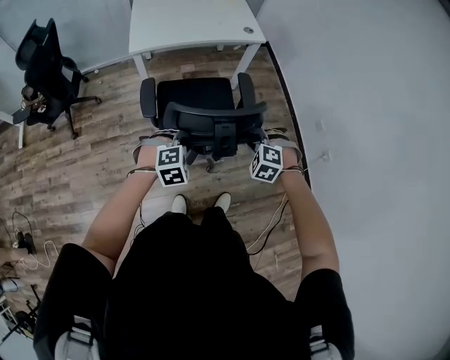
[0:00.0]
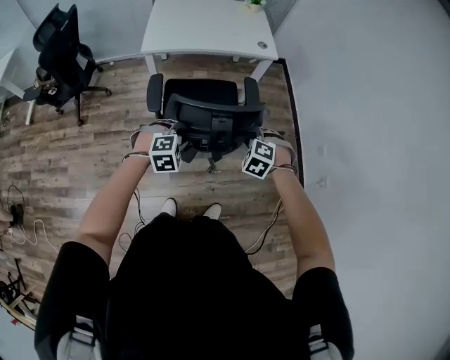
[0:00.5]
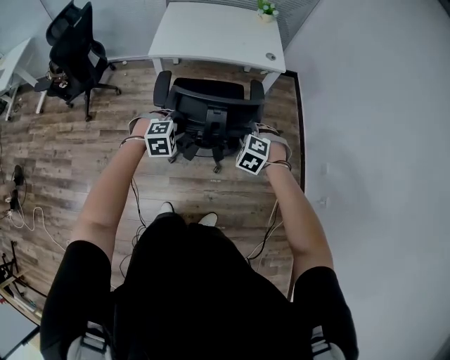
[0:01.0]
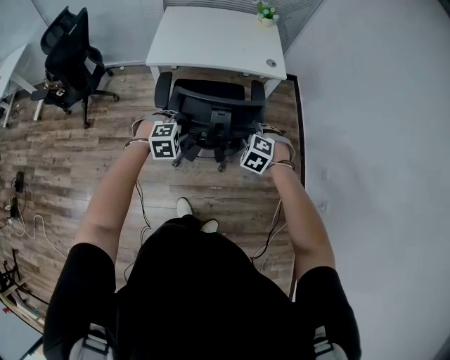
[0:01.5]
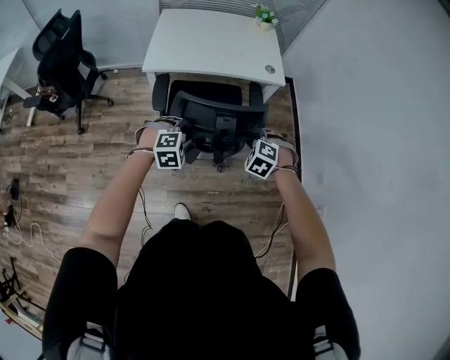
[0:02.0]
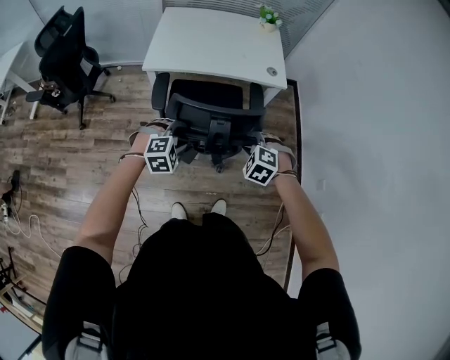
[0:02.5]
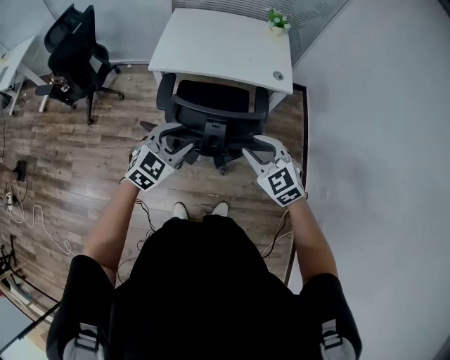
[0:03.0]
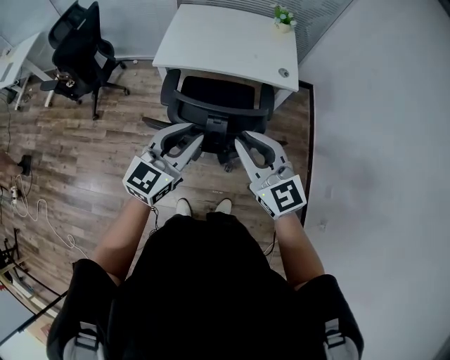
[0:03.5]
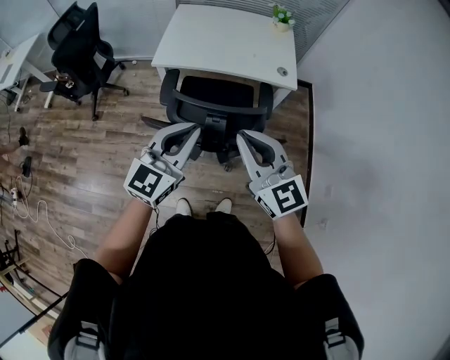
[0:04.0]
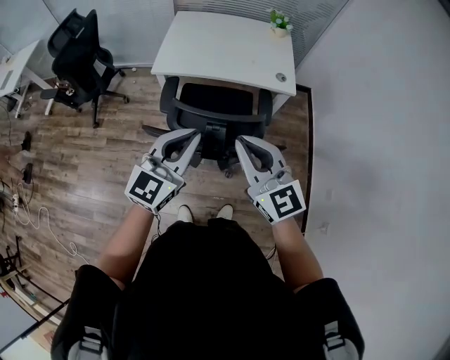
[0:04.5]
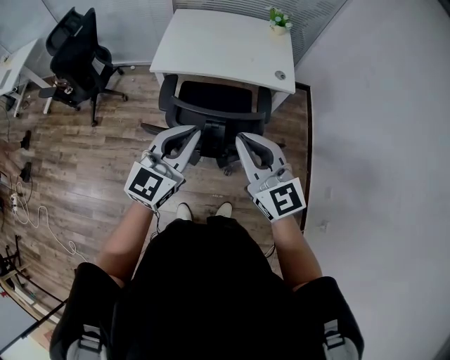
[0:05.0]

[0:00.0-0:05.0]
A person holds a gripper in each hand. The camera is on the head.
0:00.0 to 0:02.5: Both grippers travel together forward, roughly 25 cm. The left gripper opens.
0:02.5 to 0:05.0: The grippers both shift upward by some 25 cm. The right gripper tilts its fingers some 60 degrees upward, and closes, while the left gripper angles its fingers upward, by some 50 degrees, and closes.

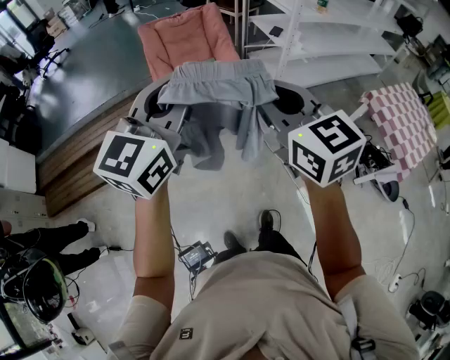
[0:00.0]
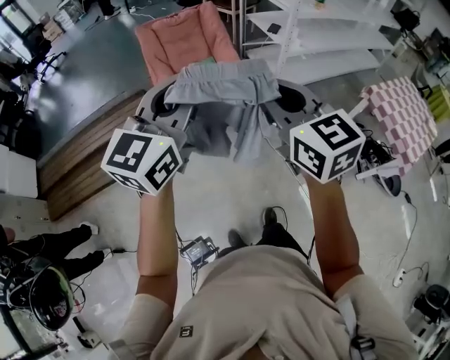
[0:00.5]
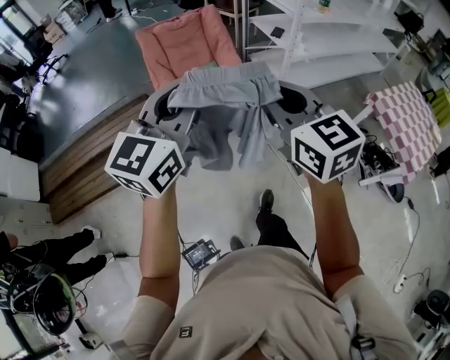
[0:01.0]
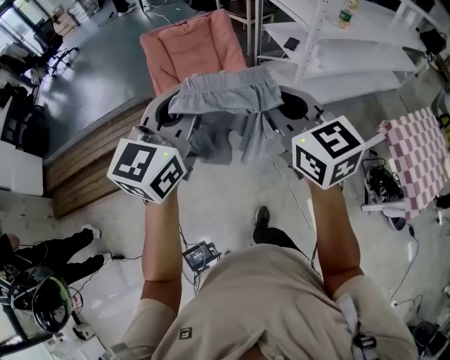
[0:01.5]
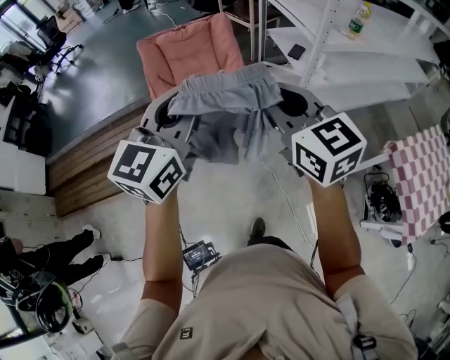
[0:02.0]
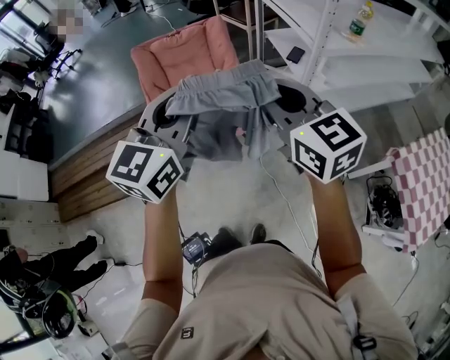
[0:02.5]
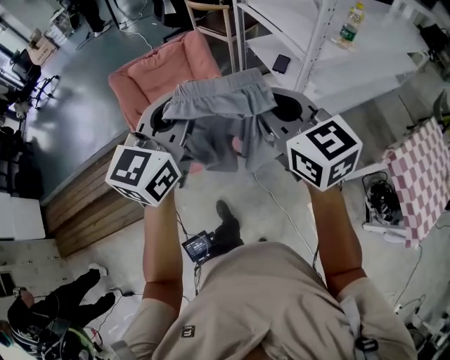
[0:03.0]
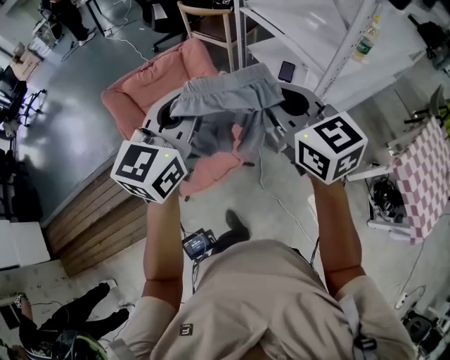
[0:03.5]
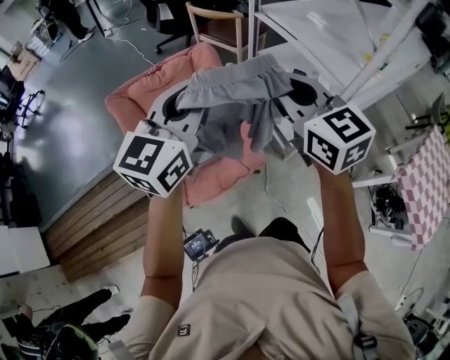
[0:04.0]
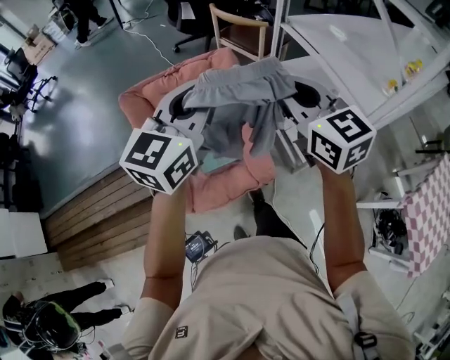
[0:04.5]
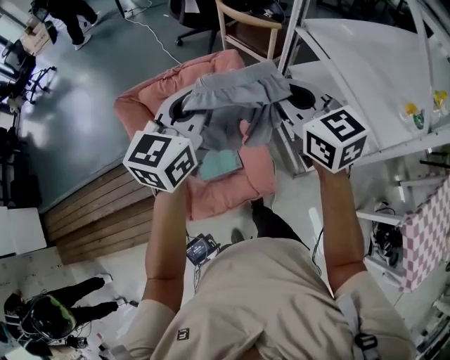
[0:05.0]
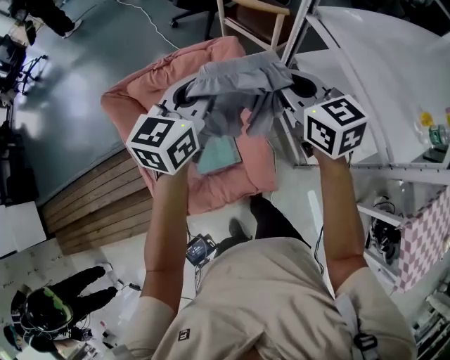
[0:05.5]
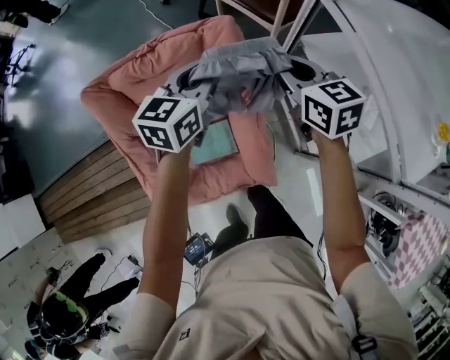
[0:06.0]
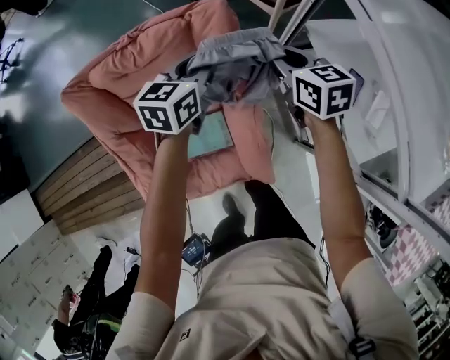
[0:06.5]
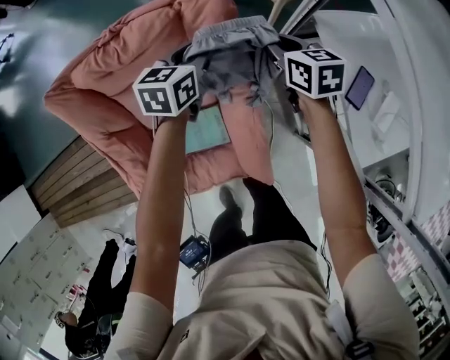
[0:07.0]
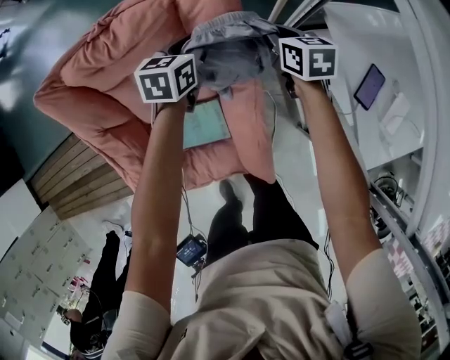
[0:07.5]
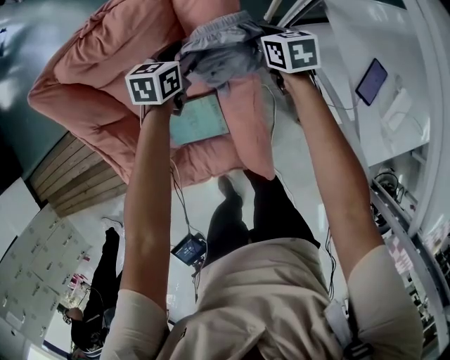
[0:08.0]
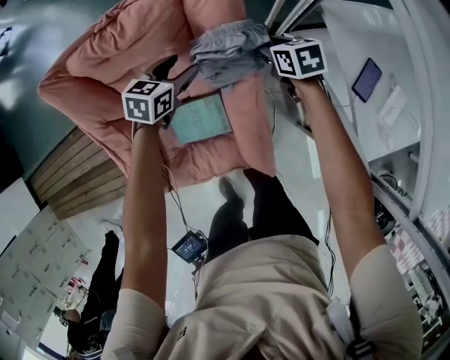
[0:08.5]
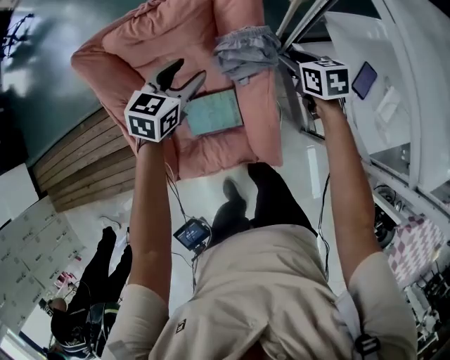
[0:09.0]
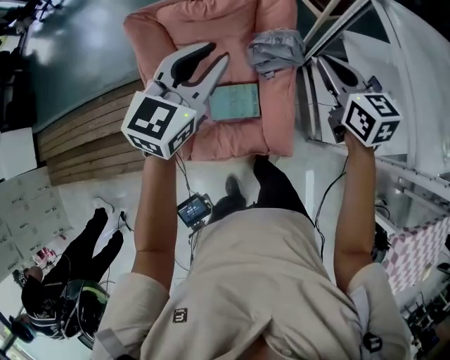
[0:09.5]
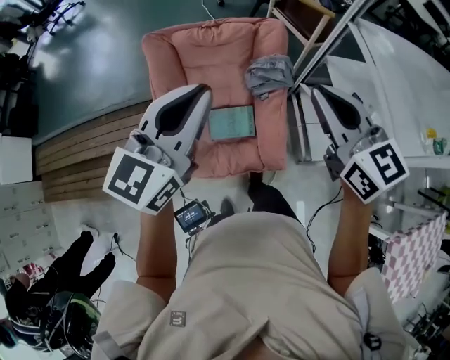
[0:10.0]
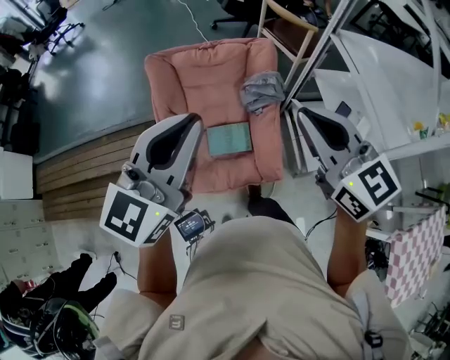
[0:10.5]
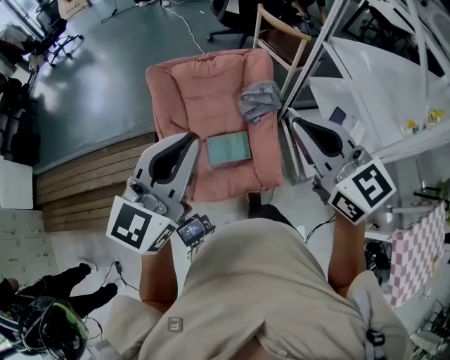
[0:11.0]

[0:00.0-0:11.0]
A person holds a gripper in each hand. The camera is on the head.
0:00.0 to 0:02.0: Both grippers move forward, about 30 cm.
0:02.0 to 0:03.5: The two grippers go roughly 30 cm forward.
0:03.5 to 0:05.5: The left gripper goes about 35 cm forward and downward. The right gripper goes some 35 cm forward.
0:05.5 to 0:07.5: The two grippers go roughly 40 cm downward and forward. The left gripper turns by approximately 30 degrees, while the right gripper turns by roughly 30 degrees.
0:07.5 to 0:09.0: The right gripper goes about 15 cm backward and upward, and opens; the left gripper is displaced backward, upward and to the left by roughly 20 cm, and opens.
0:09.0 to 0:11.0: The two grippers go approximately 50 cm upward and backward. The right gripper points its fingers about 40 degrees further upward, and closes. Meanwhile the left gripper tilts its fingers about 40 degrees upward, and closes up.

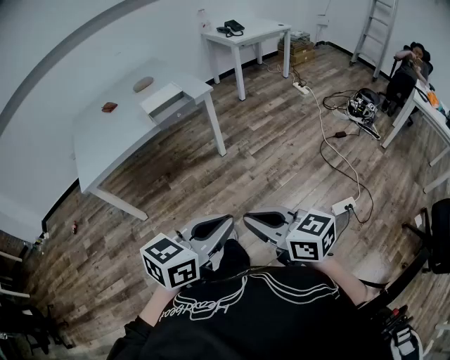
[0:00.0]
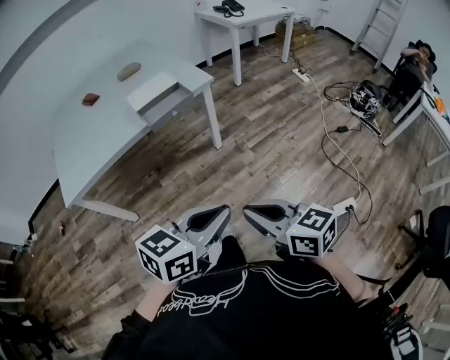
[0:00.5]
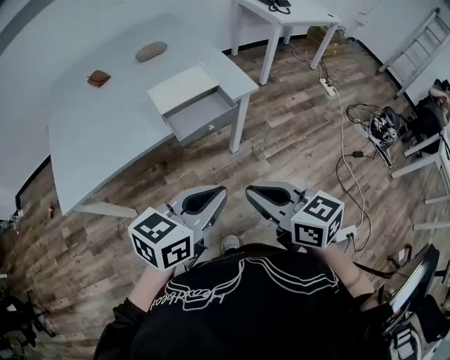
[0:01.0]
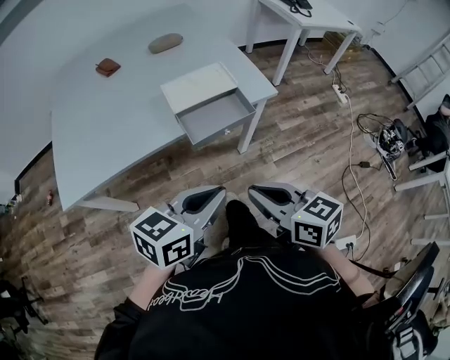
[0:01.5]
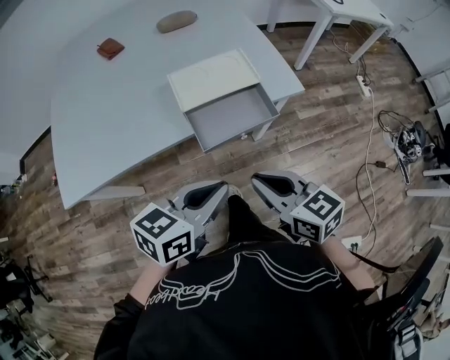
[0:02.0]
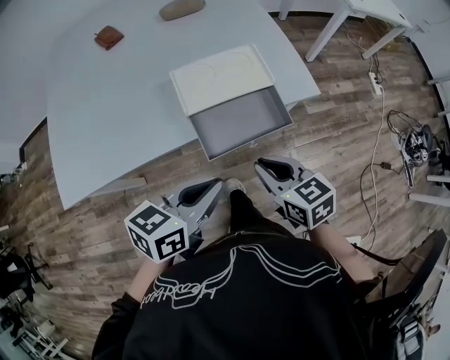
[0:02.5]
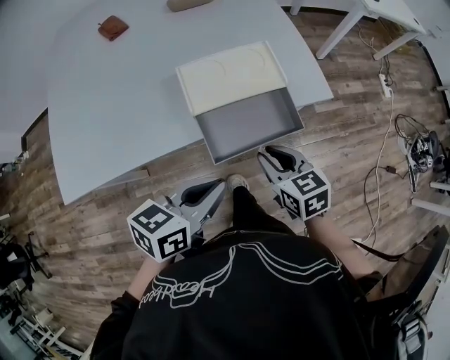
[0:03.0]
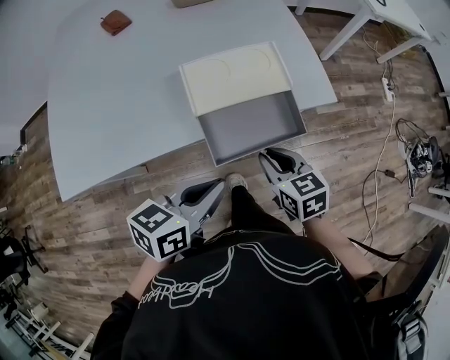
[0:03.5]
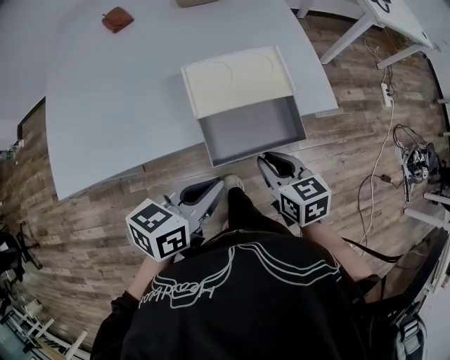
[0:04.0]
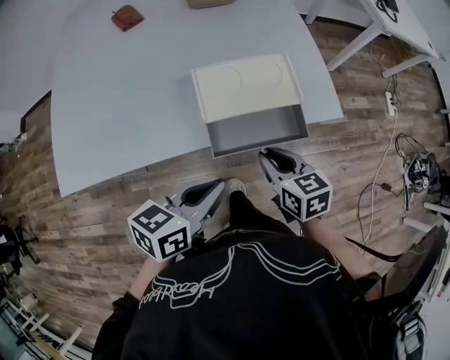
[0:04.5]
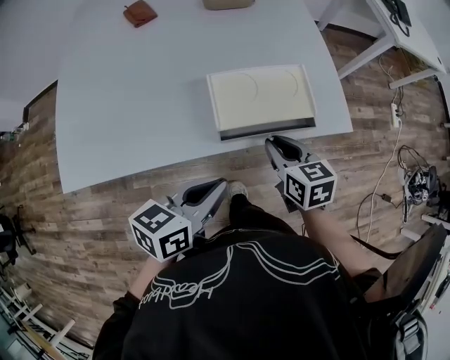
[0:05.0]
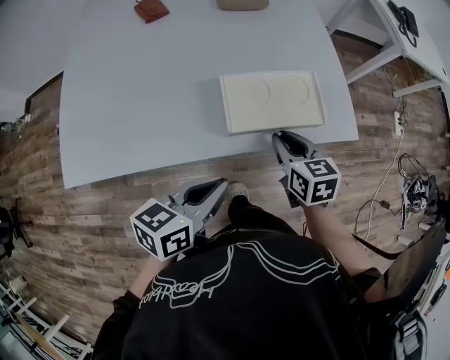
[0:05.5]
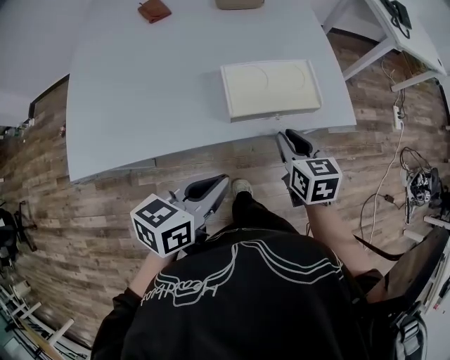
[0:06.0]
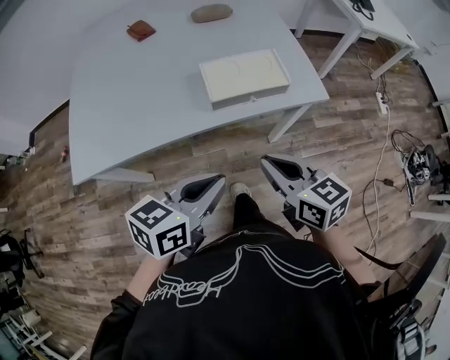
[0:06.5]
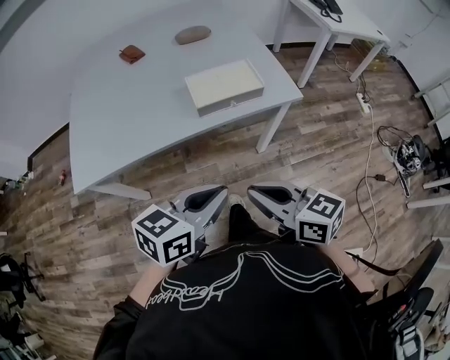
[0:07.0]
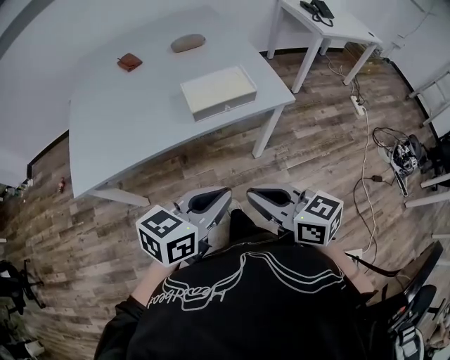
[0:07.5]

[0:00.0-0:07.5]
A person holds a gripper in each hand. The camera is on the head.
0:00.0 to 0:02.0: The two grippers travel together, forward, roughly 50 cm.
0:02.0 to 0:04.0: The right gripper travels forward and downward by some 15 cm. Meanwhile the left gripper heads forward and downward, covering about 10 cm.
0:04.0 to 0:05.5: The right gripper shifts approximately 10 cm forward. Meanwhile the left gripper goes roughly 5 cm to the left.
0:05.5 to 0:07.5: The right gripper is displaced backward and upward by roughly 35 cm, and rotates roughly 30 degrees, while the left gripper goes some 20 cm backward, upward and to the right, and swivels approximately 20 degrees.

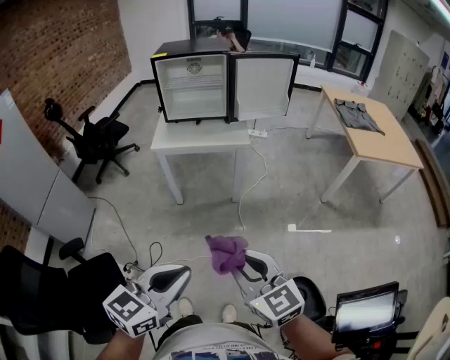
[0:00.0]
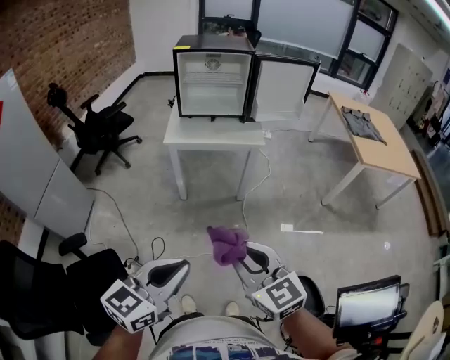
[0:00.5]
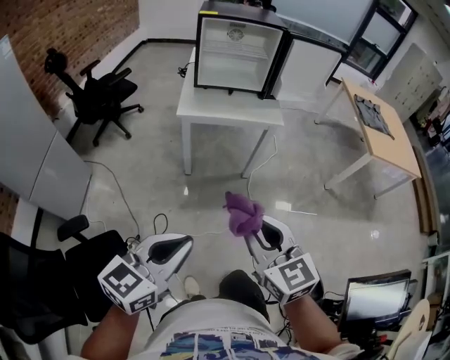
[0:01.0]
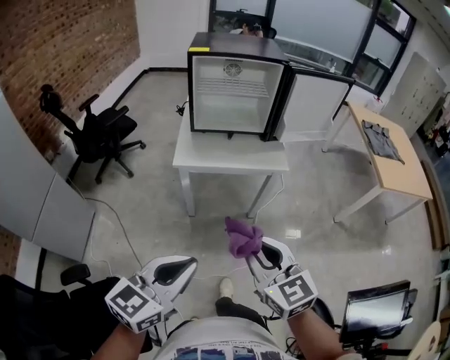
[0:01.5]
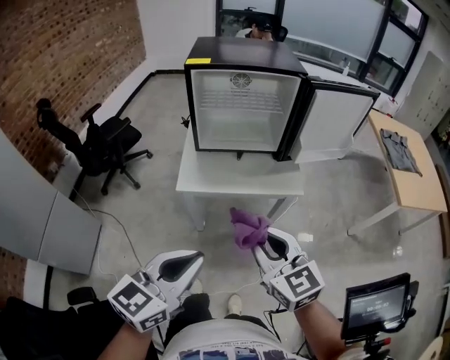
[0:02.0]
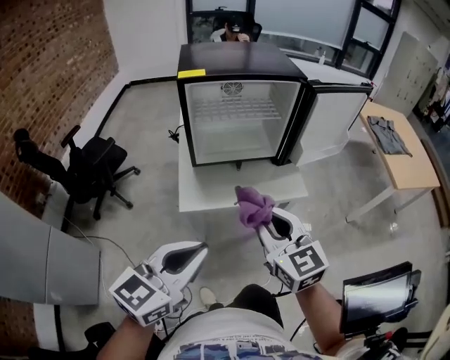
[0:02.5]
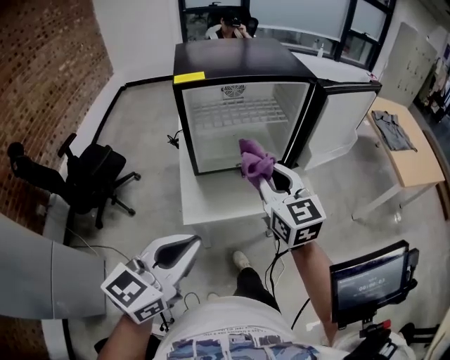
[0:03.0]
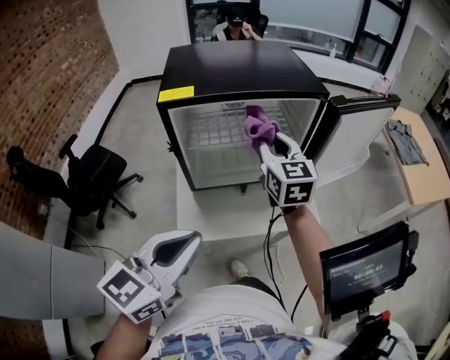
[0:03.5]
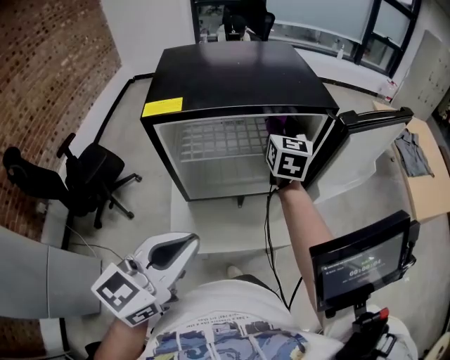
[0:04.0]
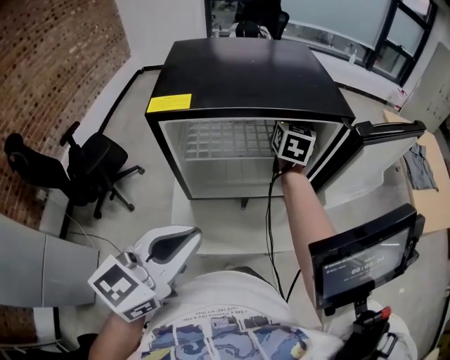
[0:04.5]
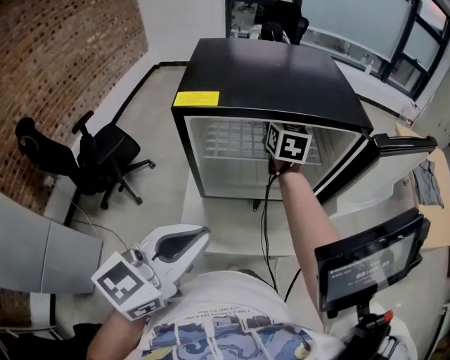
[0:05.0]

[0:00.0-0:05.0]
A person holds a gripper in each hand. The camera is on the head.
0:00.0 to 0:02.5: The two grippers travel together, forward and to the left, roughly 50 cm.
0:02.5 to 0:05.0: The left gripper shifts about 20 cm forward; the right gripper goes approximately 50 cm forward.
